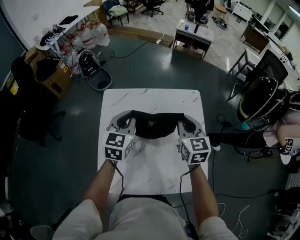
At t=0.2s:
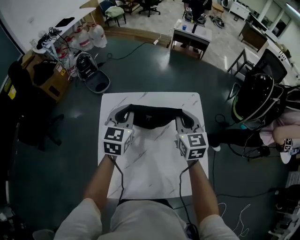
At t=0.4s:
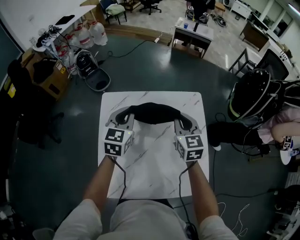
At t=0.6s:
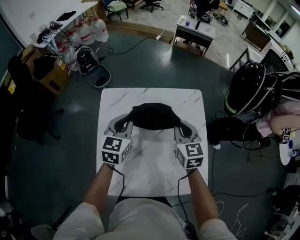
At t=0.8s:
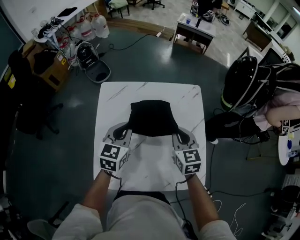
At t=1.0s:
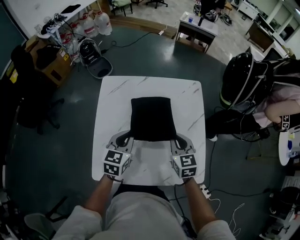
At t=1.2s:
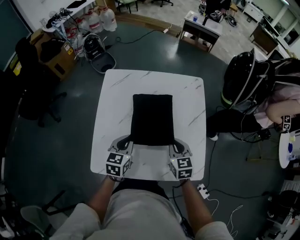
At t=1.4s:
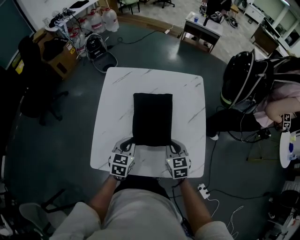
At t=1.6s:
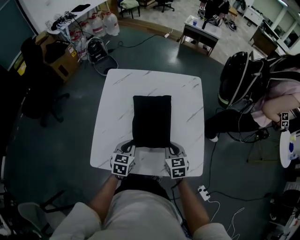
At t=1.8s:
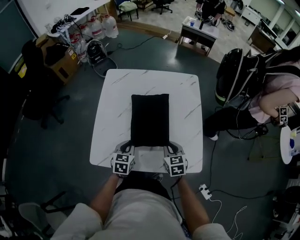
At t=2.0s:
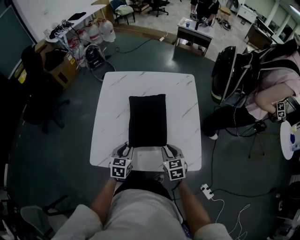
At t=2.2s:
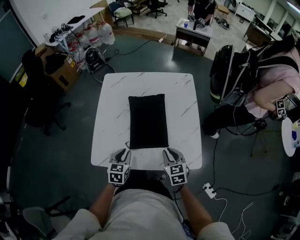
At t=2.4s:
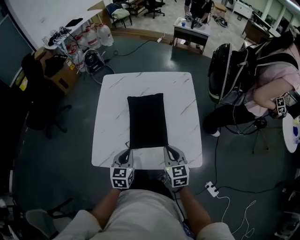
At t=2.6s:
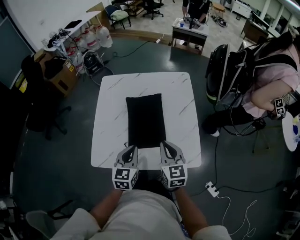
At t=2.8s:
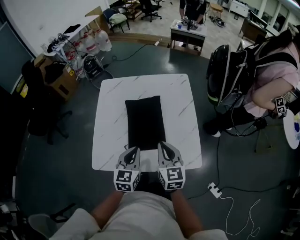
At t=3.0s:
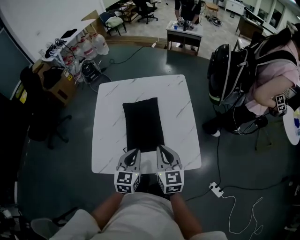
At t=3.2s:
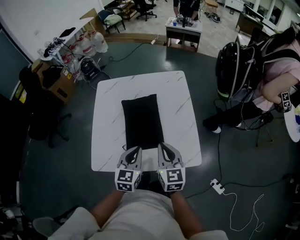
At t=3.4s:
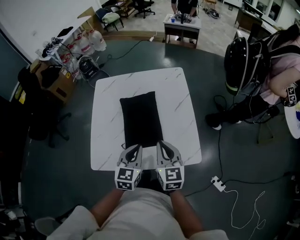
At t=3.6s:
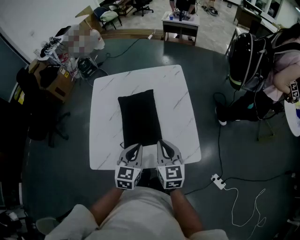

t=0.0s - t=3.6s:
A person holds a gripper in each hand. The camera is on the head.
t=0.0s - t=1.8s: The grippers both shift backward and downward by about 30 cm. The left gripper swivels about 20 degrees. The right gripper turns by approximately 20 degrees.
t=1.8s - t=3.6s: The right gripper moves upward, approximately 15 cm, and rotates some 30 degrees, while the left gripper shifts about 15 cm to the right and upward.

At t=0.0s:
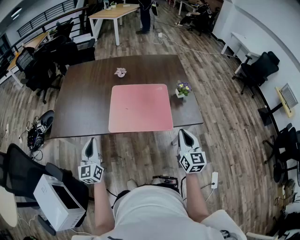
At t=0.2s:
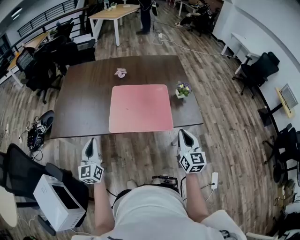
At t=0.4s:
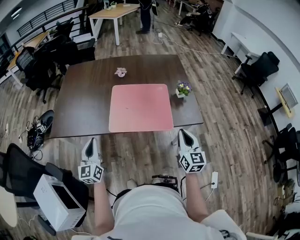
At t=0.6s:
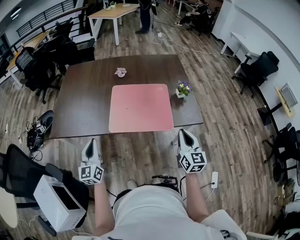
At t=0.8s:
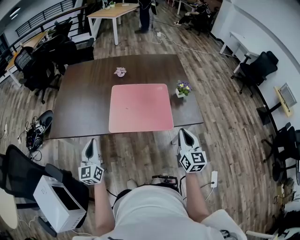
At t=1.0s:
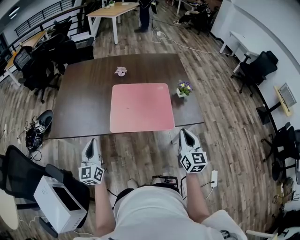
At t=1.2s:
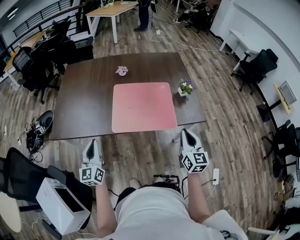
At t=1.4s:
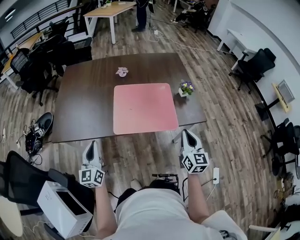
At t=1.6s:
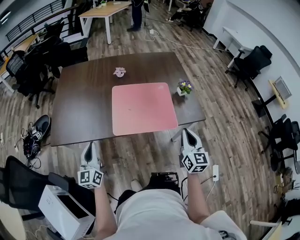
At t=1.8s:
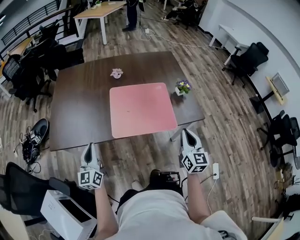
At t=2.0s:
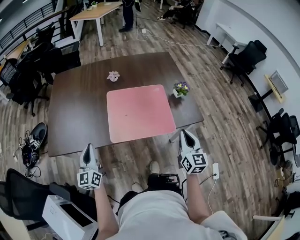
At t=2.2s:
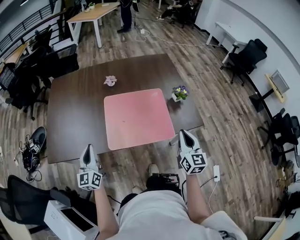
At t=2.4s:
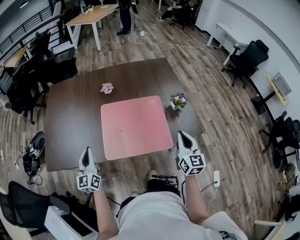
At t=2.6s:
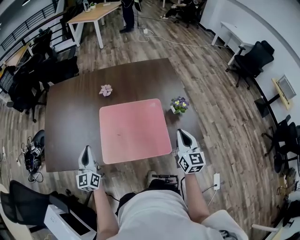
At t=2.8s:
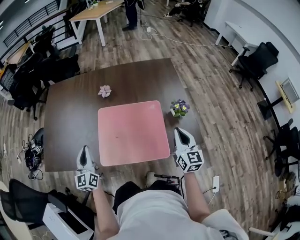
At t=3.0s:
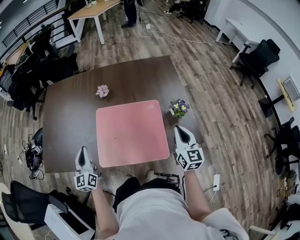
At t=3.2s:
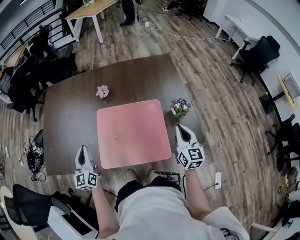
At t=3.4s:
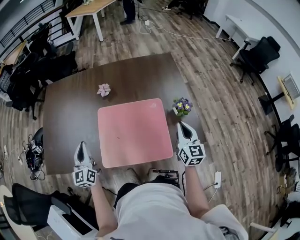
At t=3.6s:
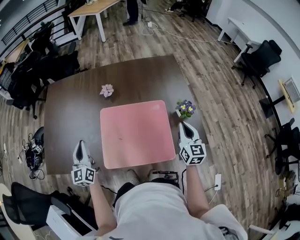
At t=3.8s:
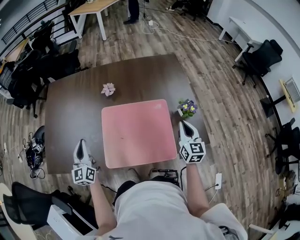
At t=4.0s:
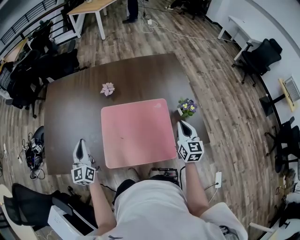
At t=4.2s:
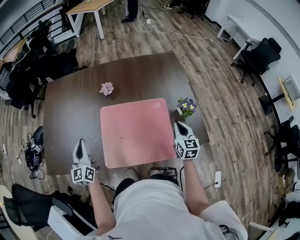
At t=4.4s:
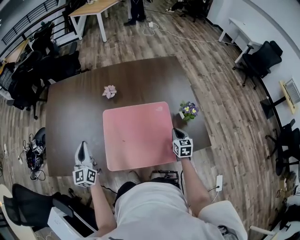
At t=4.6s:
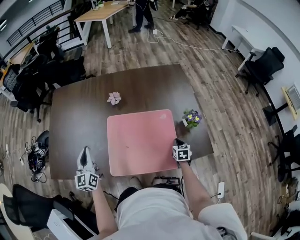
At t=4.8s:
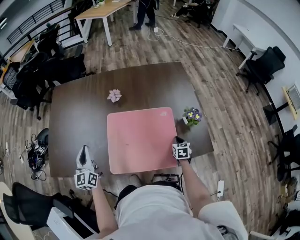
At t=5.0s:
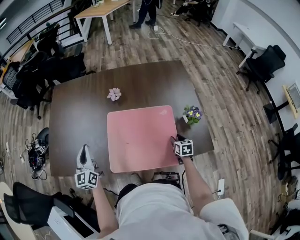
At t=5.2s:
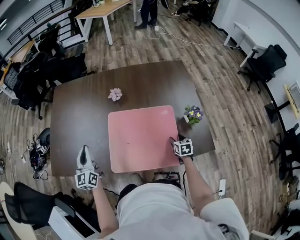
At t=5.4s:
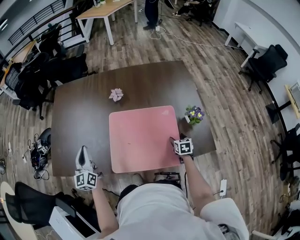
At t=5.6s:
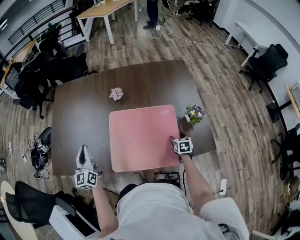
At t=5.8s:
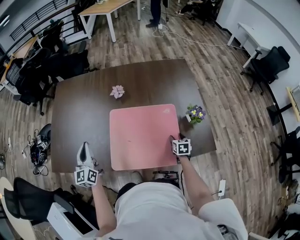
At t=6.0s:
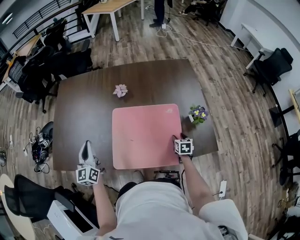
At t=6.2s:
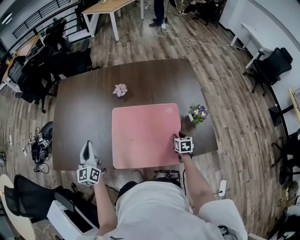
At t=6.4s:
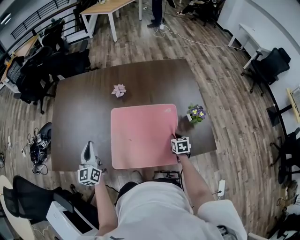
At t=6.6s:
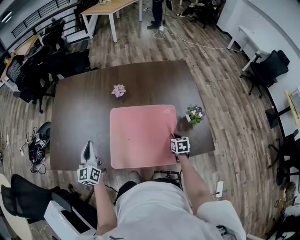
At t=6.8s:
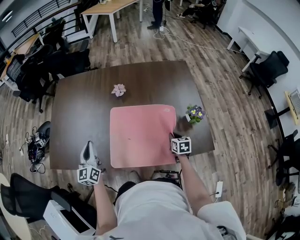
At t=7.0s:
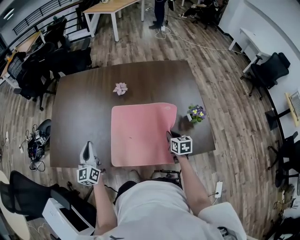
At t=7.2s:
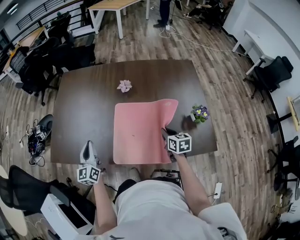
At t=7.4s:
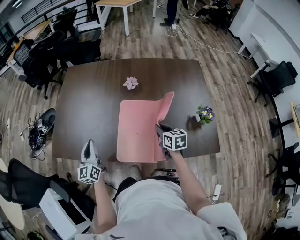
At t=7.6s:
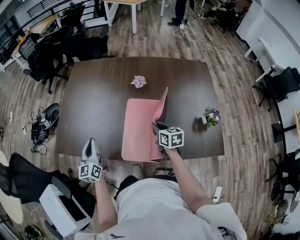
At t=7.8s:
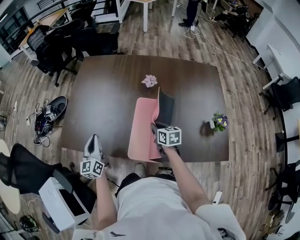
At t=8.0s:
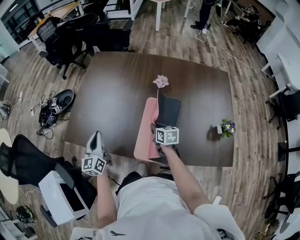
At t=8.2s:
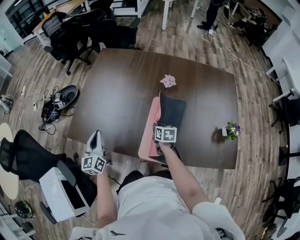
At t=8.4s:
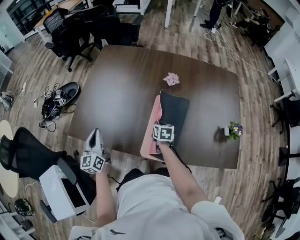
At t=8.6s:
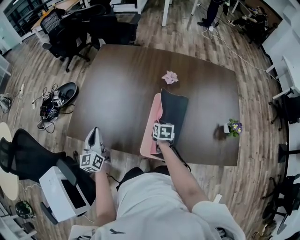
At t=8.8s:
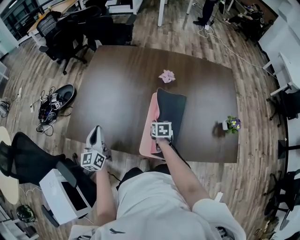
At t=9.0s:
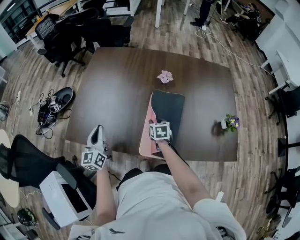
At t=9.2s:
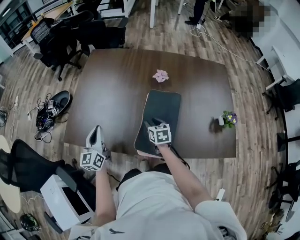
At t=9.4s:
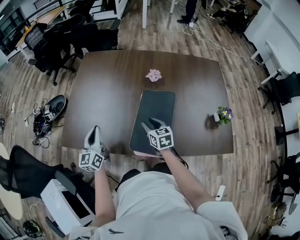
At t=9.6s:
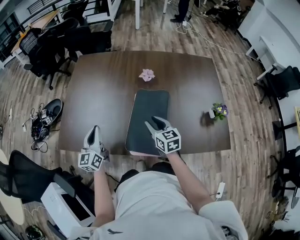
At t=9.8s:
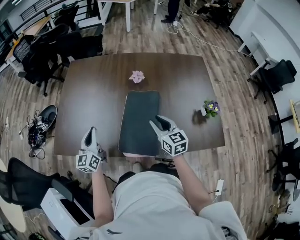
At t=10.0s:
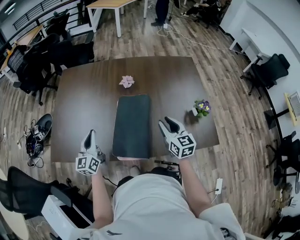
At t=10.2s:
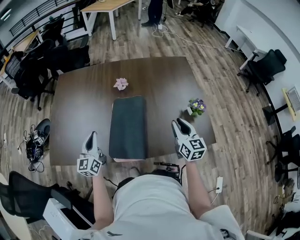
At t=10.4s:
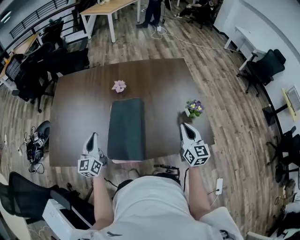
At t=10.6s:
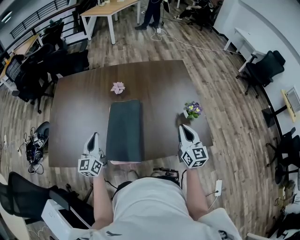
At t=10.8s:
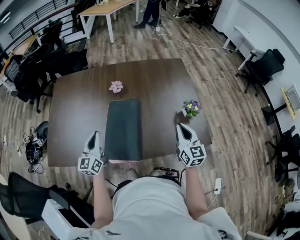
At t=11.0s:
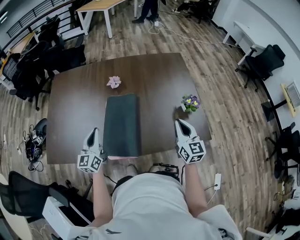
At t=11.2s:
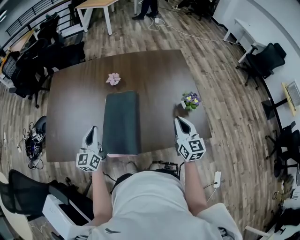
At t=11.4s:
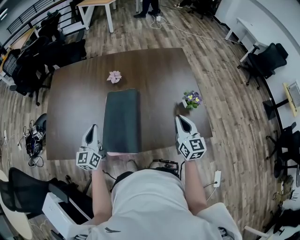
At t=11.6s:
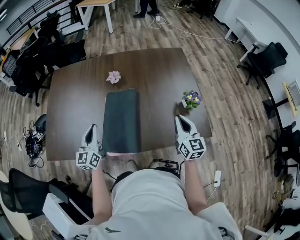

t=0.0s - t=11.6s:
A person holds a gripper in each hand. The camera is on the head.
t=0.0s - t=1.4s: The grippers move only a little.
t=1.4s - t=2.8s: The two grippers go about 20 cm forward.
t=2.8s - t=4.4s: The left gripper goes approximately 5 cm forward, while the right gripper goes roughly 20 cm downward and forward, and rotates about 30 degrees.
t=4.4s - t=5.8s: The right gripper heads downward, covering some 5 cm, and opens its fingers.
t=5.8s - t=7.2s: The right gripper moves upward and to the left, approximately 15 cm, changes its angle by about 20 degrees, and closes its fingers.
t=7.2s - t=8.8s: The left gripper heads to the left, covering roughly 15 cm. Meanwhile the right gripper goes some 25 cm to the left, forward and downward.
t=8.8s - t=10.2s: The right gripper is displaced to the right, upward and backward by roughly 35 cm, and tilts its fingers some 40 degrees upward, while the left gripper is displaced to the right by approximately 15 cm.
t=10.2s - t=11.6s: The left gripper changes place by some 5 cm.

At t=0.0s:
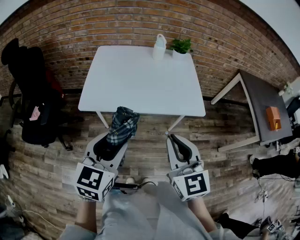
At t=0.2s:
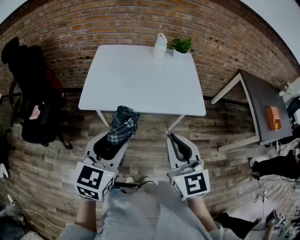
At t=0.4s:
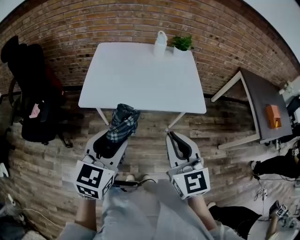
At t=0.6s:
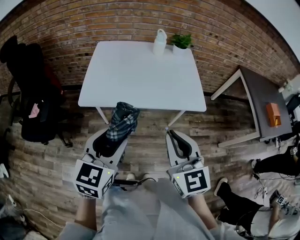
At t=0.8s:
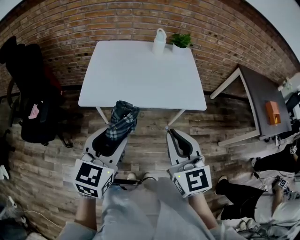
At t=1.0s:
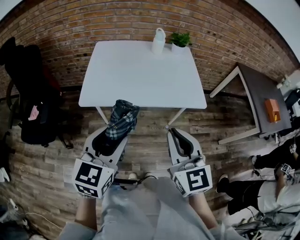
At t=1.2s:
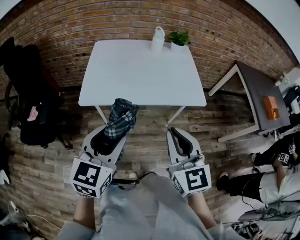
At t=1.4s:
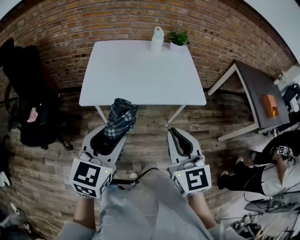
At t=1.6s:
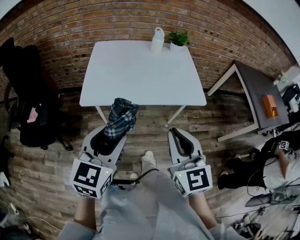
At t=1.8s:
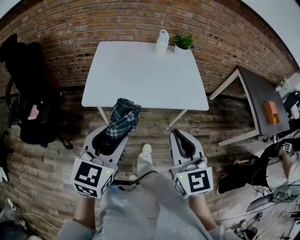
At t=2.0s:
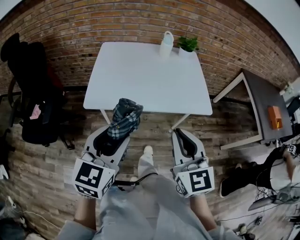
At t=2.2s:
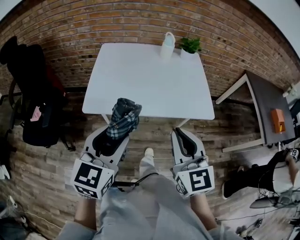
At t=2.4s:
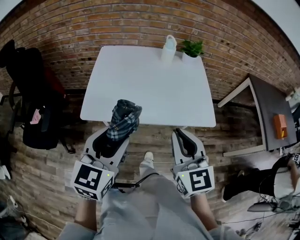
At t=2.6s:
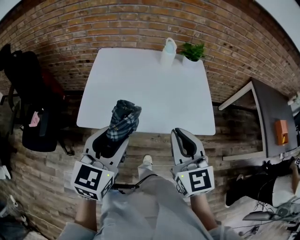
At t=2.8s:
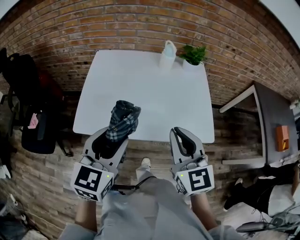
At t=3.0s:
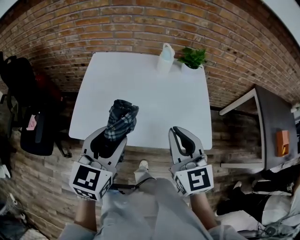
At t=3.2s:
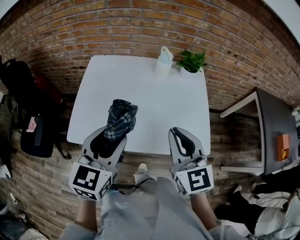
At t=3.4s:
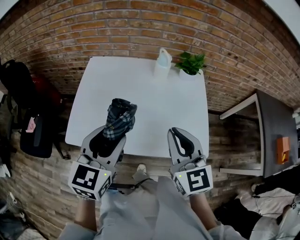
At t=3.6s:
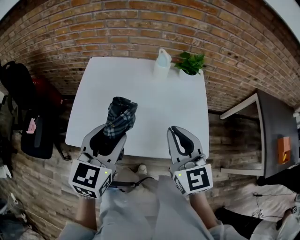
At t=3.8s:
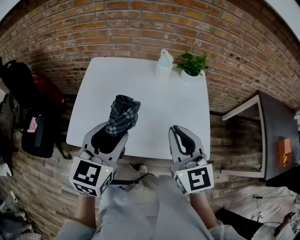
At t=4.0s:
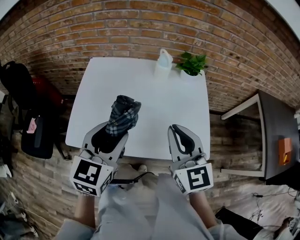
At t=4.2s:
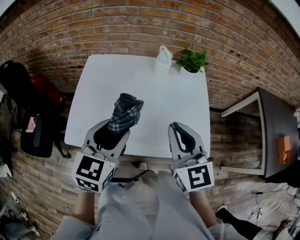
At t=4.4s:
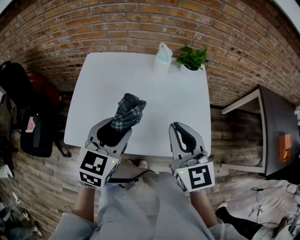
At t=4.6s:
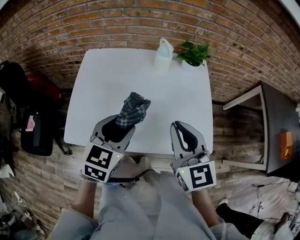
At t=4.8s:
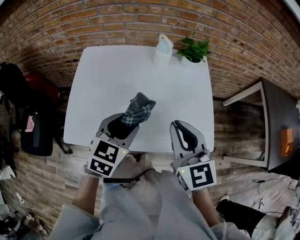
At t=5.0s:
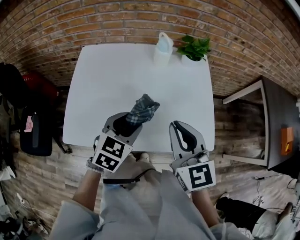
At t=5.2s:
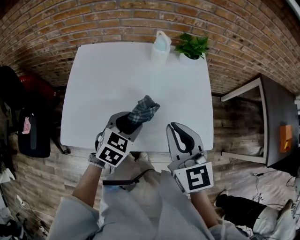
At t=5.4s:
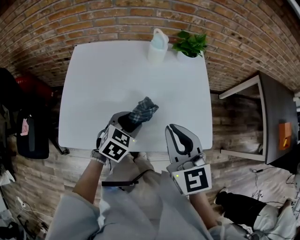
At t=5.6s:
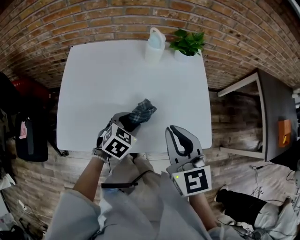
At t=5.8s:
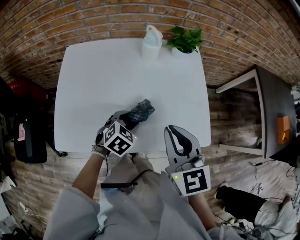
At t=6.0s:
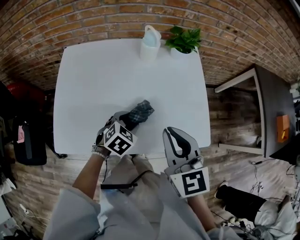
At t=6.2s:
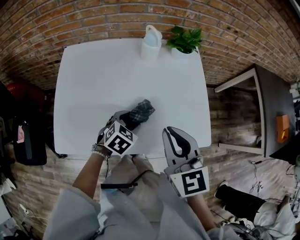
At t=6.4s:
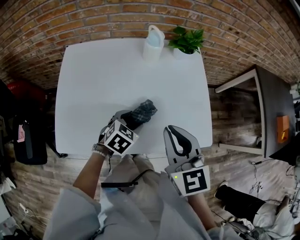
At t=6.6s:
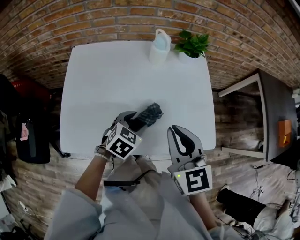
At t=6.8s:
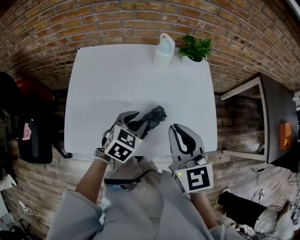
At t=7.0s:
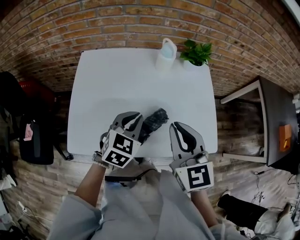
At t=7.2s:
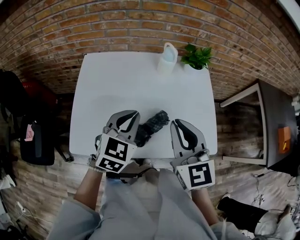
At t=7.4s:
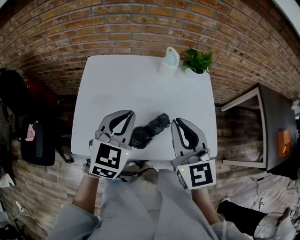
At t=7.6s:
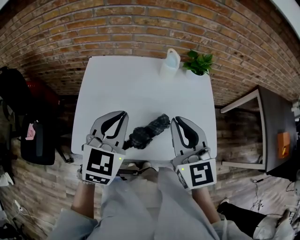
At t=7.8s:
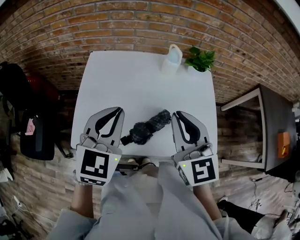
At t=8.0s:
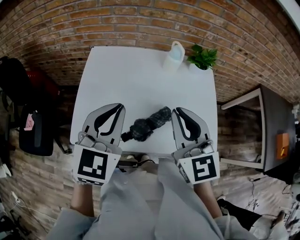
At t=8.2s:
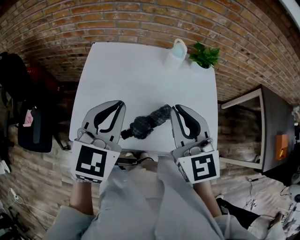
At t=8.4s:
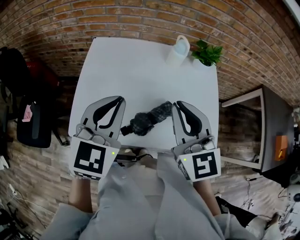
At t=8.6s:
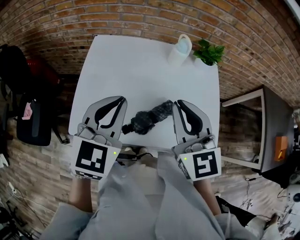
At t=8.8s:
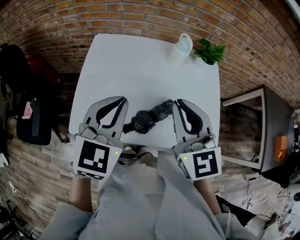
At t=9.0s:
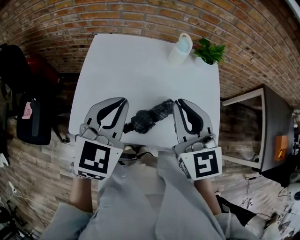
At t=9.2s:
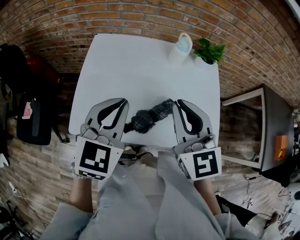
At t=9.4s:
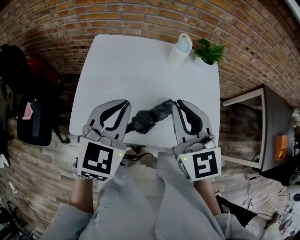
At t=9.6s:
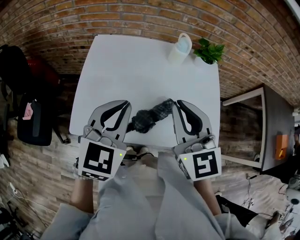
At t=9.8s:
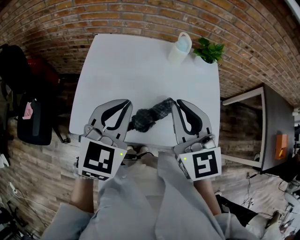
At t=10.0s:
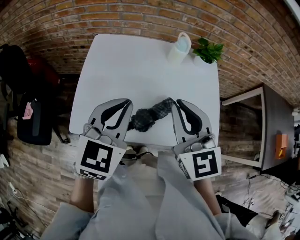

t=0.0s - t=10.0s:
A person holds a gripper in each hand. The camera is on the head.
t=0.0s - t=1.4s: The left gripper changes place by some 5 cm; the right gripper ends up some 5 cm from where it was.
t=1.4s - t=2.8s: Both grippers move forward, about 25 cm.
t=2.8s - t=4.2s: Both grippers move forward and to the right, some 15 cm.
t=4.2s - t=5.8s: The right gripper travels downward by roughly 5 cm, while the left gripper moves downward, some 25 cm, and tips its fingers downward by approximately 30 degrees.
t=5.8s - t=7.2s: The left gripper travels upward by about 20 cm, swivels about 30 degrees, and closes. The right gripper moves to the left and upward, roughly 10 cm.
t=7.2s - t=8.6s: The left gripper travels upward and to the left by some 10 cm, while the right gripper ends up about 5 cm from where it was.
t=8.6s - t=10.0s: The grippers stay close to where they were, moving slightly.
